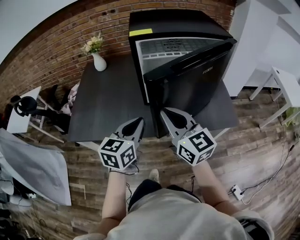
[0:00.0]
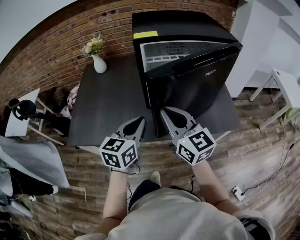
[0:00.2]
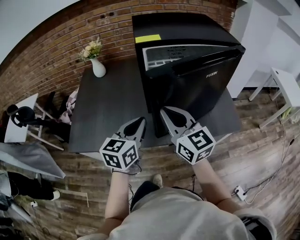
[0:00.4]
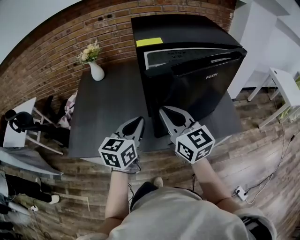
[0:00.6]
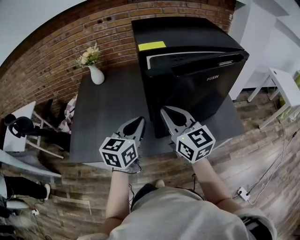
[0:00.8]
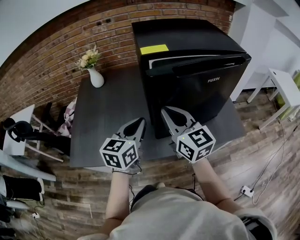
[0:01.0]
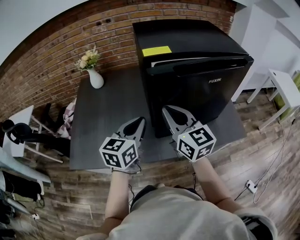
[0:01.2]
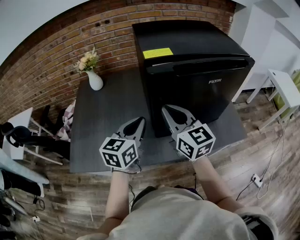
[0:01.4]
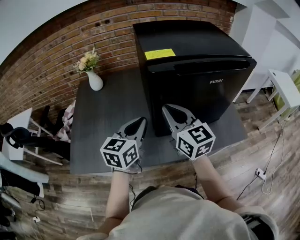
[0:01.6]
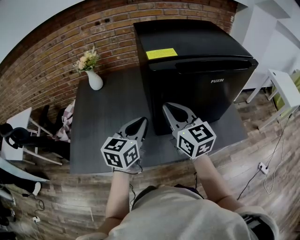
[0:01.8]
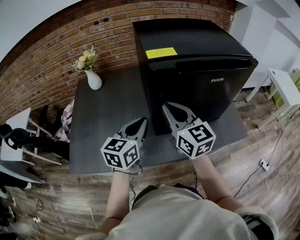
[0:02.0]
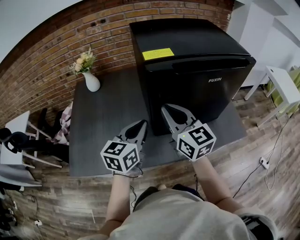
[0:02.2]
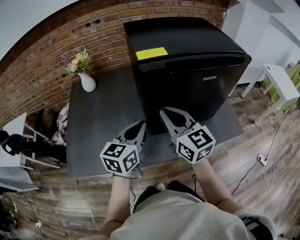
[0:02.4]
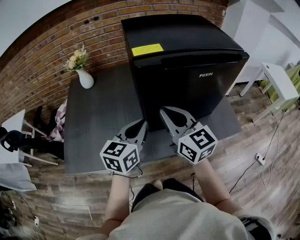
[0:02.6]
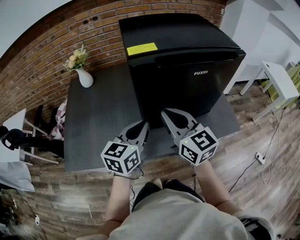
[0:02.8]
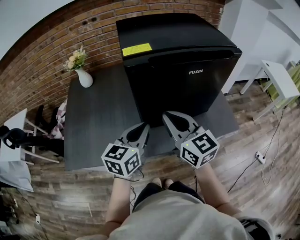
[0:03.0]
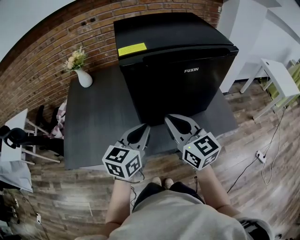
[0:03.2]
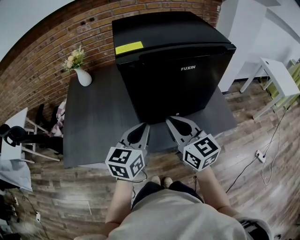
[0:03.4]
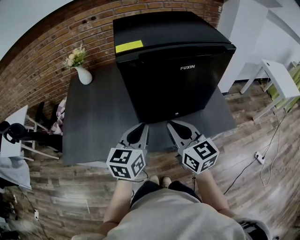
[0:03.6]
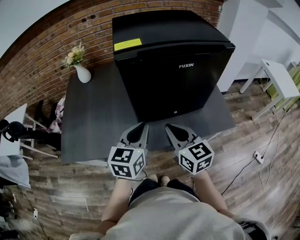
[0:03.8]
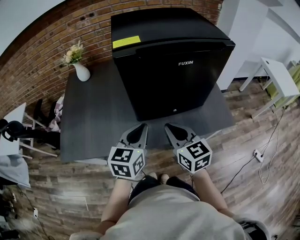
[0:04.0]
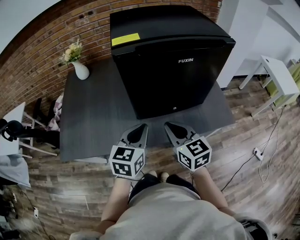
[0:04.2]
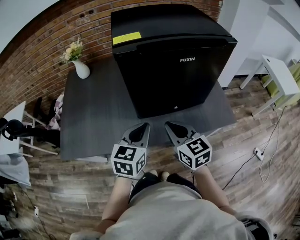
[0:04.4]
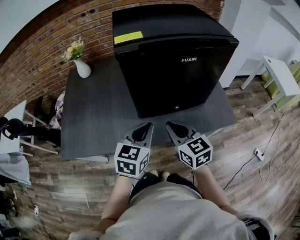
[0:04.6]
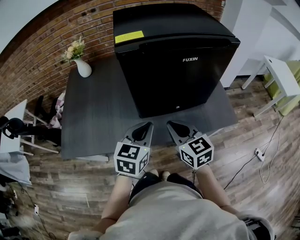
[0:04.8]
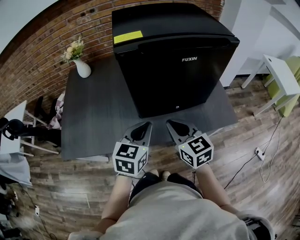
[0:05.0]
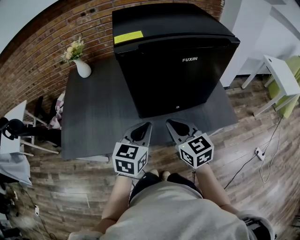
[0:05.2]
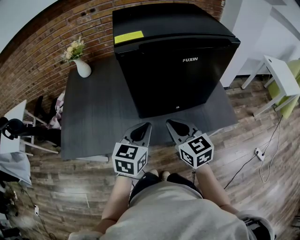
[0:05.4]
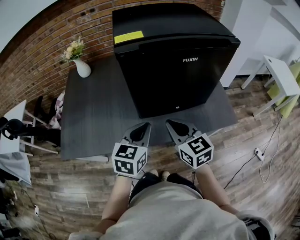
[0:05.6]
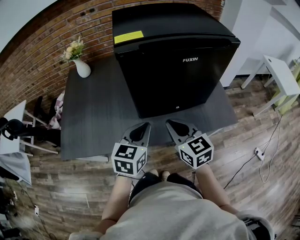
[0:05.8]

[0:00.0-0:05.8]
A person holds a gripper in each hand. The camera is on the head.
0:00.0 to 0:01.4: The two grippers go about 15 cm forward.
0:01.4 to 0:02.8: The left gripper travels to the right by about 5 cm. The right gripper changes place by approximately 5 cm.
0:02.8 to 0:04.4: The left gripper is displaced backward by roughly 5 cm, while the right gripper goes about 15 cm downward, backward and to the right.
0:04.4 to 0:05.8: The two grippers keep their place.

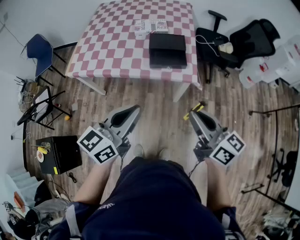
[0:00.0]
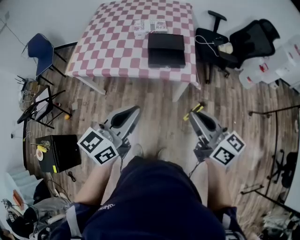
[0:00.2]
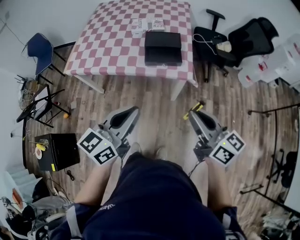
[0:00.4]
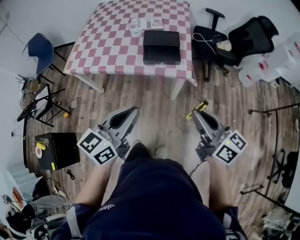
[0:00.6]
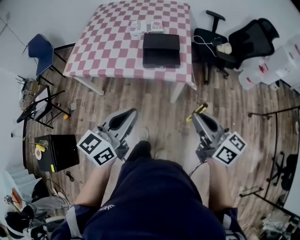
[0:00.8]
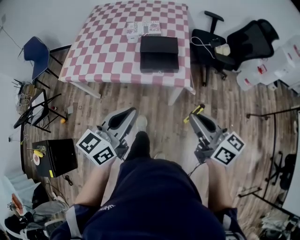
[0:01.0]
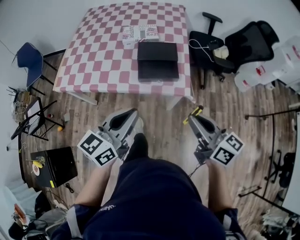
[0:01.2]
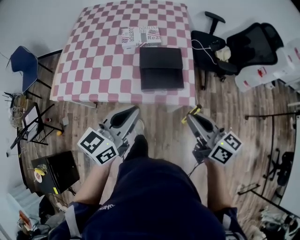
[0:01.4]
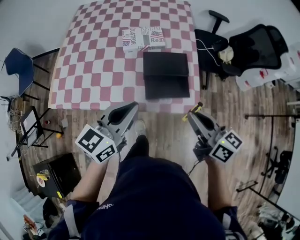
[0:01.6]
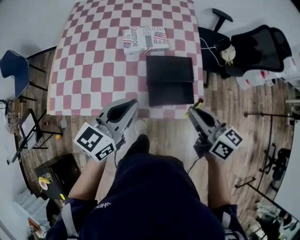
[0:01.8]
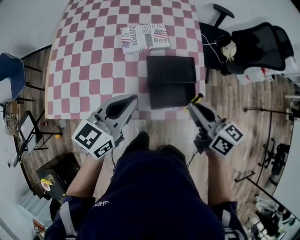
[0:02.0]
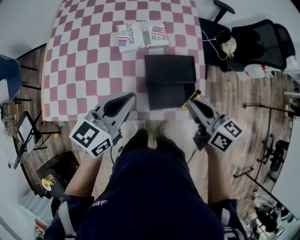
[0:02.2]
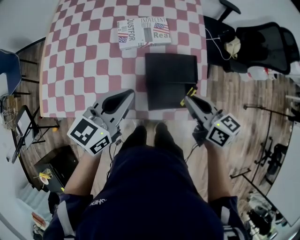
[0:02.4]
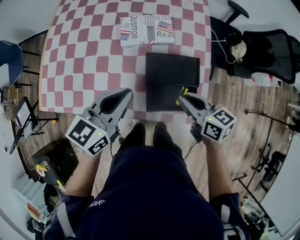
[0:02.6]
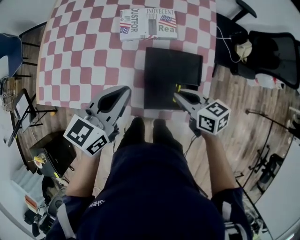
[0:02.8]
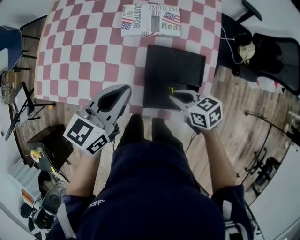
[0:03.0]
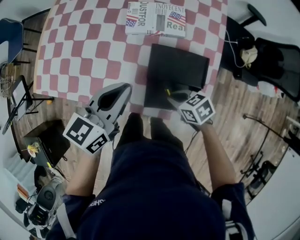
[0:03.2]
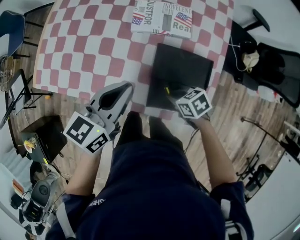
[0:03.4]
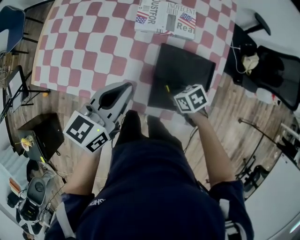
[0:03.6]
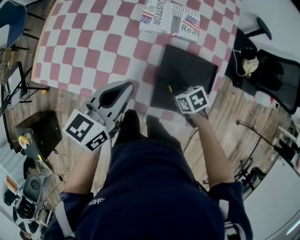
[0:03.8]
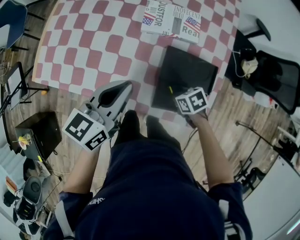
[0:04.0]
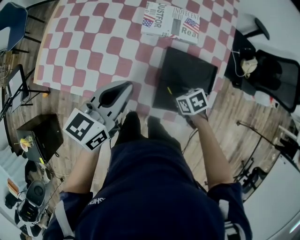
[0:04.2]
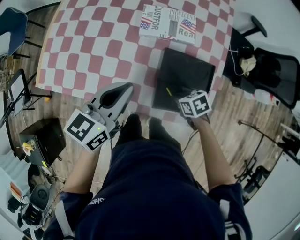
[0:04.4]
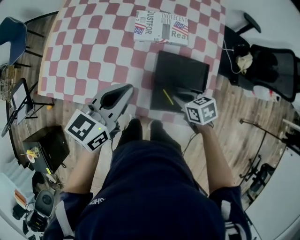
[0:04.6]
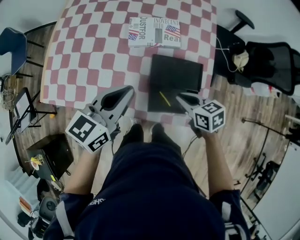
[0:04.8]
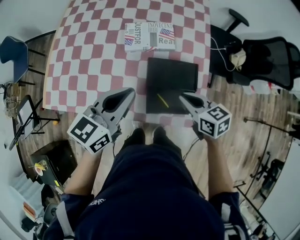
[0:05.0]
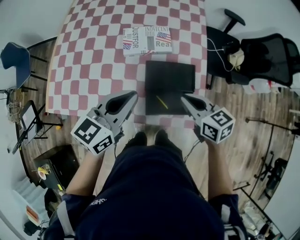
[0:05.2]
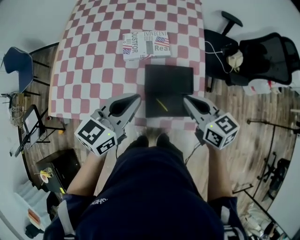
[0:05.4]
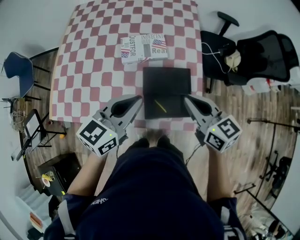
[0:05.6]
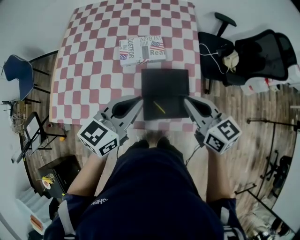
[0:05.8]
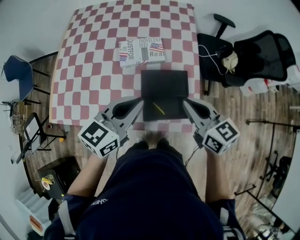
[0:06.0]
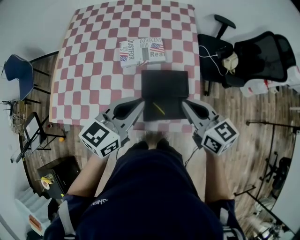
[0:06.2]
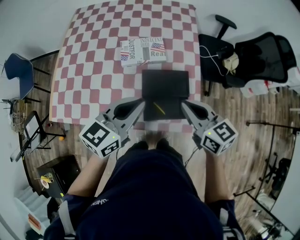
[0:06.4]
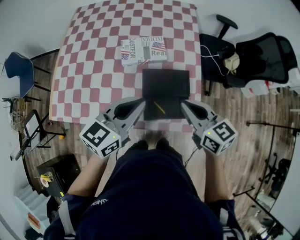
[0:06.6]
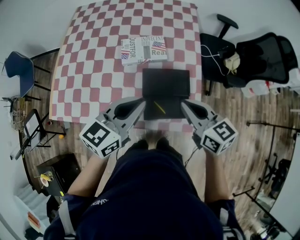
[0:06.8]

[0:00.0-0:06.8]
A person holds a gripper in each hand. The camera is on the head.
0:00.0 to 0:01.4: Both grippers move forward, approximately 20 cm.
0:01.4 to 0:02.8: The right gripper is displaced forward and downward by approximately 30 cm, and turns by about 30 degrees, while the left gripper goes some 25 cm forward.
0:02.8 to 0:04.0: The right gripper heads downward, covering approximately 15 cm, and tips its fingers downward by roughly 30 degrees. Meanwhile the left gripper changes place by roughly 5 cm.
0:04.0 to 0:05.4: The left gripper changes place by roughly 10 cm, and changes its angle by roughly 20 degrees, while the right gripper heads upward, covering approximately 25 cm, and angles its fingers upward, by some 40 degrees.
0:05.4 to 0:06.8: The grippers stay close to where they were, moving slightly.

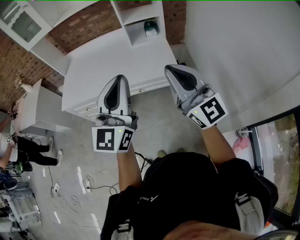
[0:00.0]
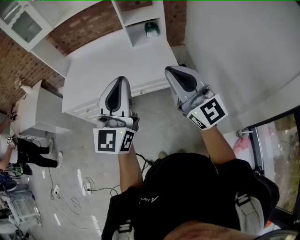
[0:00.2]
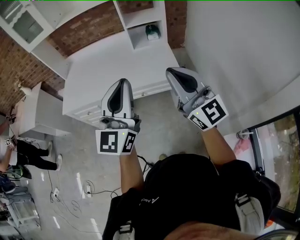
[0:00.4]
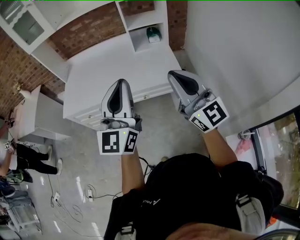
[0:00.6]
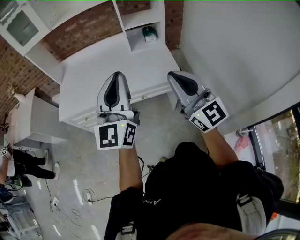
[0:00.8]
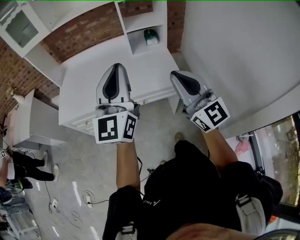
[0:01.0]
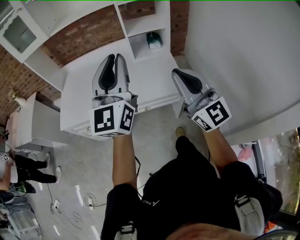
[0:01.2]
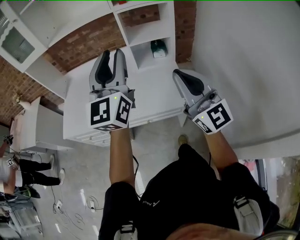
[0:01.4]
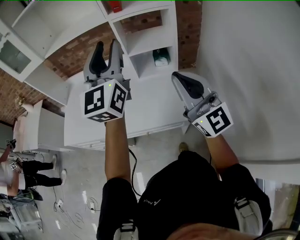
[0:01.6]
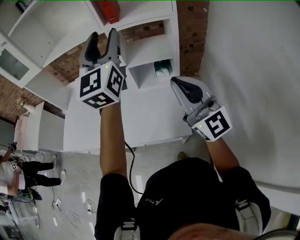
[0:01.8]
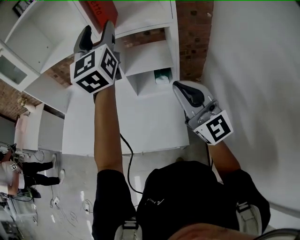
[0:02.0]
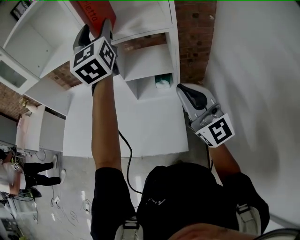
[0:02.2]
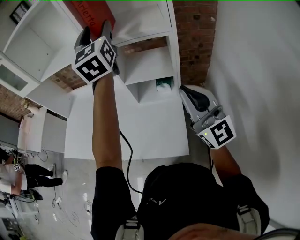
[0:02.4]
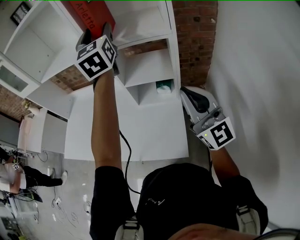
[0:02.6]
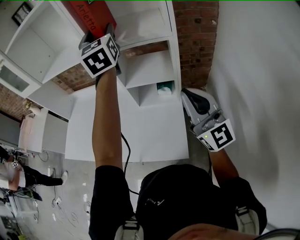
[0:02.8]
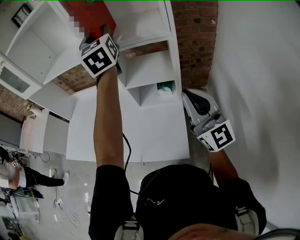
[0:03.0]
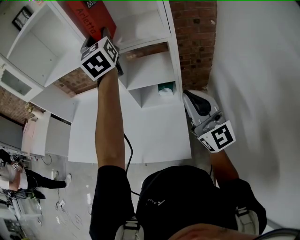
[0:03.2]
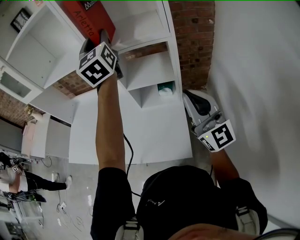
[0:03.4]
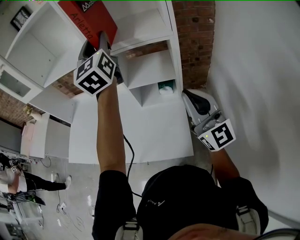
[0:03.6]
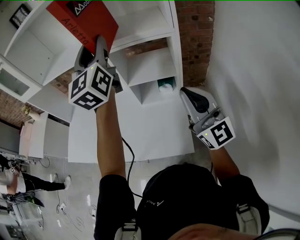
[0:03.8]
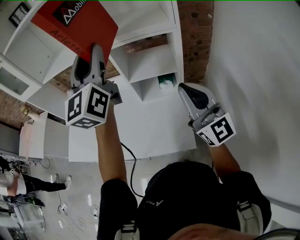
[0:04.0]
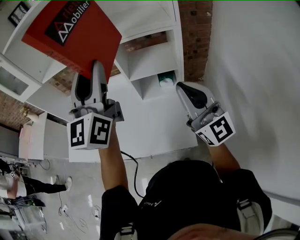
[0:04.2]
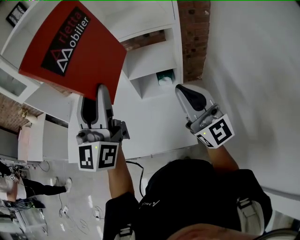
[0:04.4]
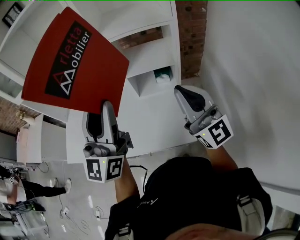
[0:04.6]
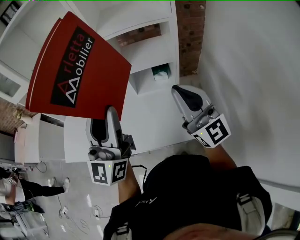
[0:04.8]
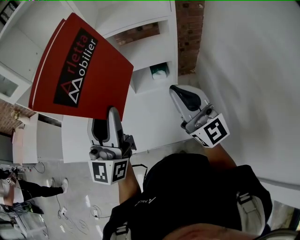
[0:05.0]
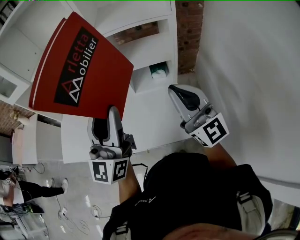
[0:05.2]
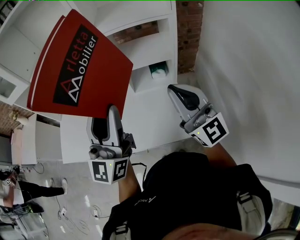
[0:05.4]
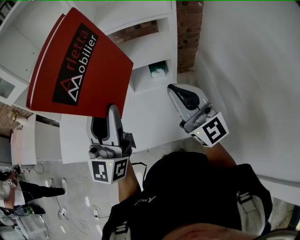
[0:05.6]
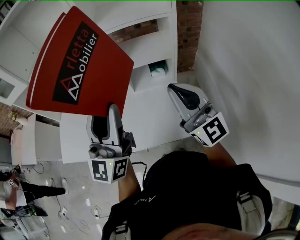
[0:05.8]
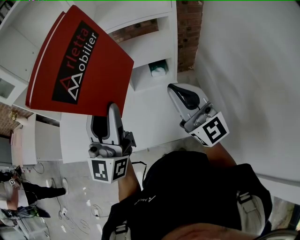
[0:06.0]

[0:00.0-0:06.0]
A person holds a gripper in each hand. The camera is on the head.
0:00.0 to 0:01.6: Both grippers travel together forward, about 30 cm. The left gripper opens.
0:01.6 to 0:03.0: The right gripper is displaced to the right and forward by approximately 20 cm. The left gripper heads forward and to the right, covering about 30 cm, and rotates some 30 degrees.
0:03.0 to 0:04.4: The left gripper is displaced backward and to the left by some 25 cm, and swivels about 30 degrees. Meanwhile the right gripper goes some 10 cm to the left.
0:04.4 to 0:06.0: The left gripper shifts about 5 cm downward.

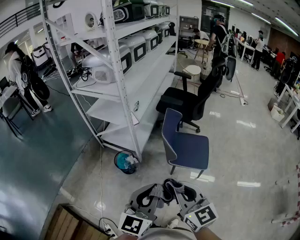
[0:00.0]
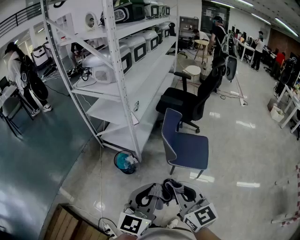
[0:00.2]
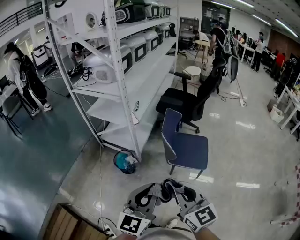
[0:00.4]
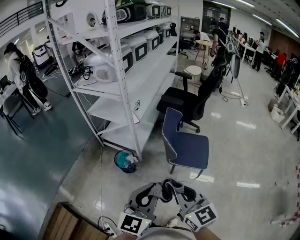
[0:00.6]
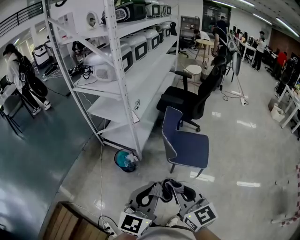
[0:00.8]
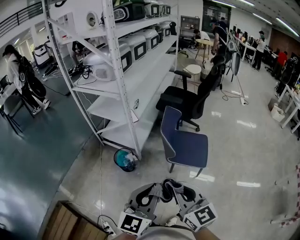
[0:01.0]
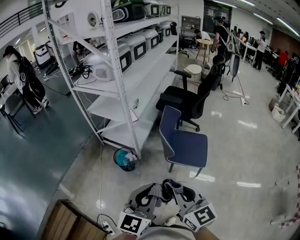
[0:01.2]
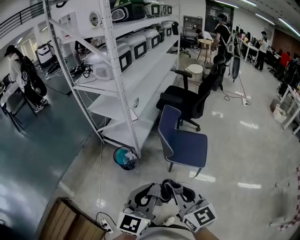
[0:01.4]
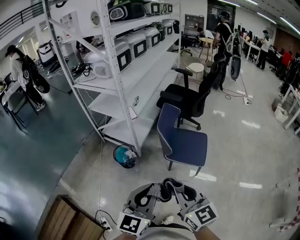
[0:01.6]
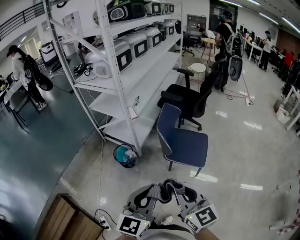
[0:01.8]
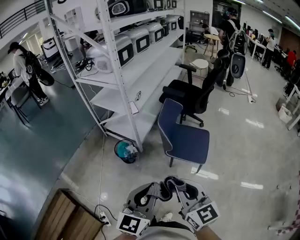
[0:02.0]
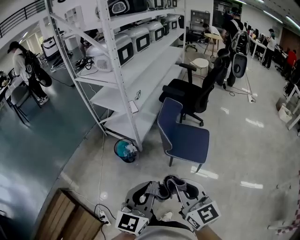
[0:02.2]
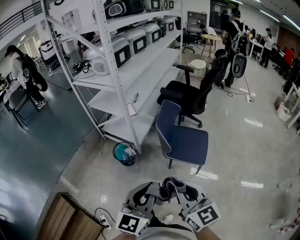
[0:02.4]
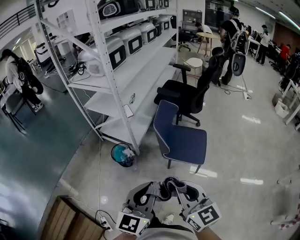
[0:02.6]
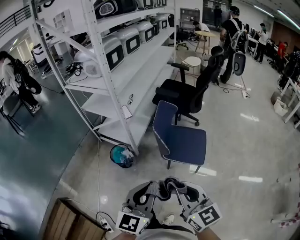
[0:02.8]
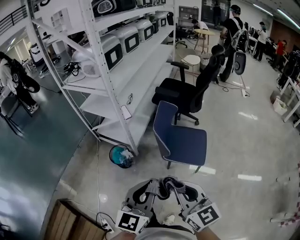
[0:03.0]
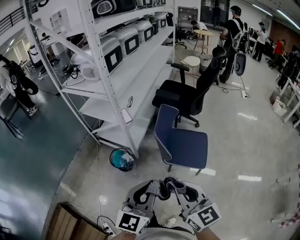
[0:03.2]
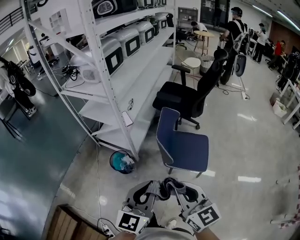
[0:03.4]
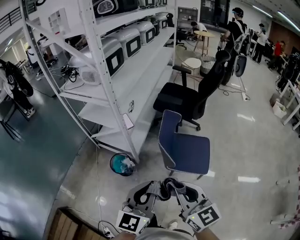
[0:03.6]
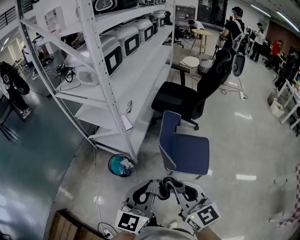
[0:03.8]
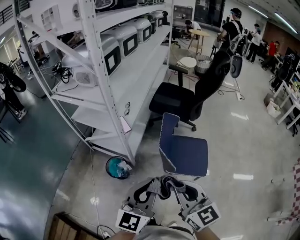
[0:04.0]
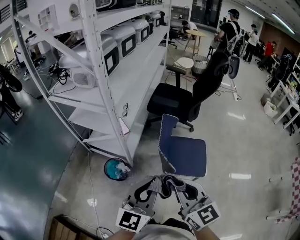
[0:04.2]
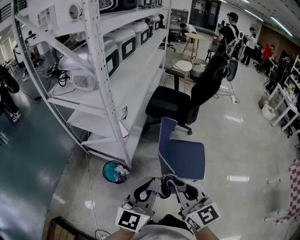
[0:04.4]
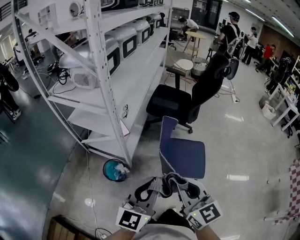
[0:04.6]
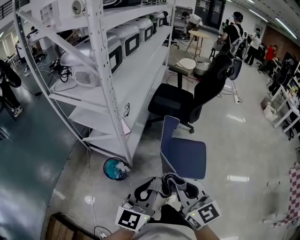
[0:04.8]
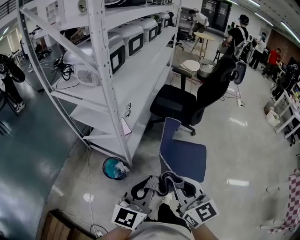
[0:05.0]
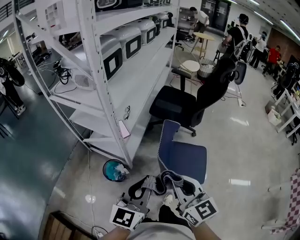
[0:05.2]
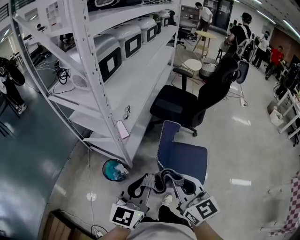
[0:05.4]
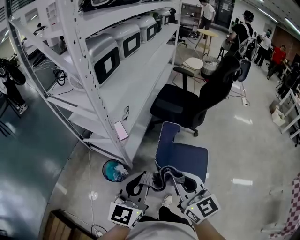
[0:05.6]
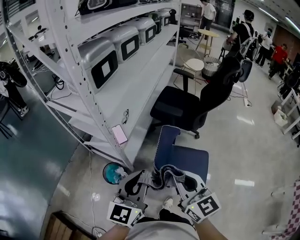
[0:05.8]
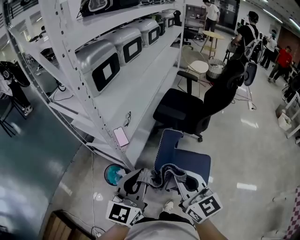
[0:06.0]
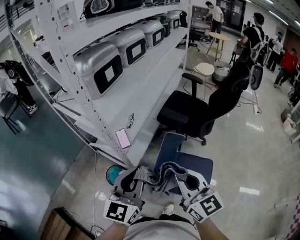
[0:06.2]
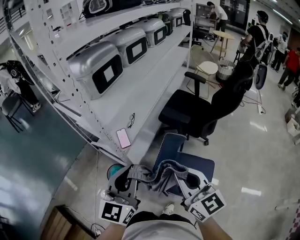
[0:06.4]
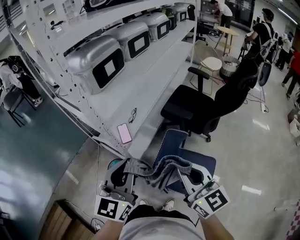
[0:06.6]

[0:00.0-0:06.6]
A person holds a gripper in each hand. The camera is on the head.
0:00.0 to 0:01.6: The right gripper shifts approximately 5 cm to the right. The left gripper moves approximately 5 cm.
0:01.6 to 0:03.2: The grippers both shift forward by approximately 10 cm.
0:03.2 to 0:05.0: The grippers both shift forward and to the left by roughly 20 cm.
0:05.0 to 0:06.6: The left gripper heads forward, covering some 15 cm, and turns by some 20 degrees; the right gripper moves forward and to the right, some 20 cm.
